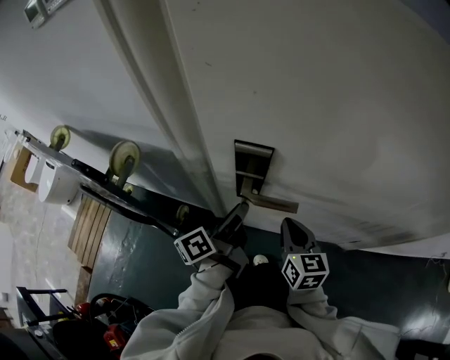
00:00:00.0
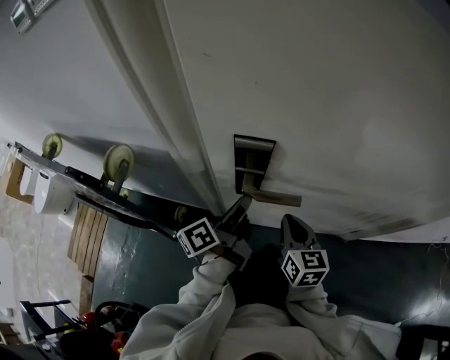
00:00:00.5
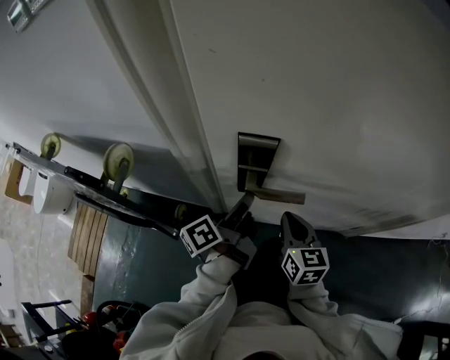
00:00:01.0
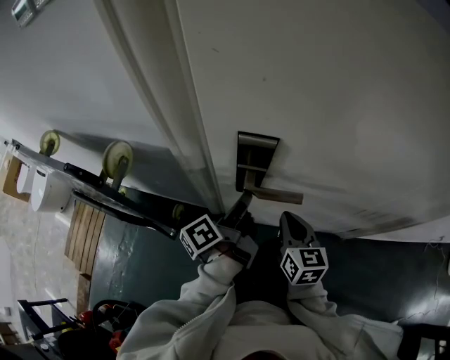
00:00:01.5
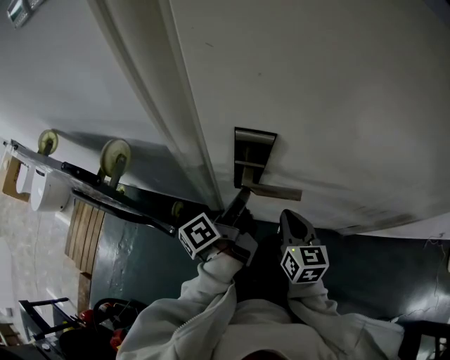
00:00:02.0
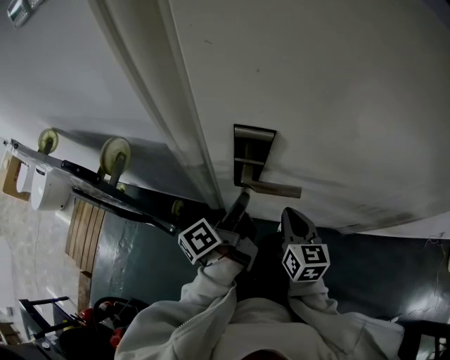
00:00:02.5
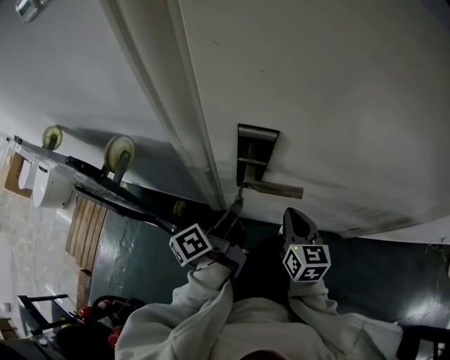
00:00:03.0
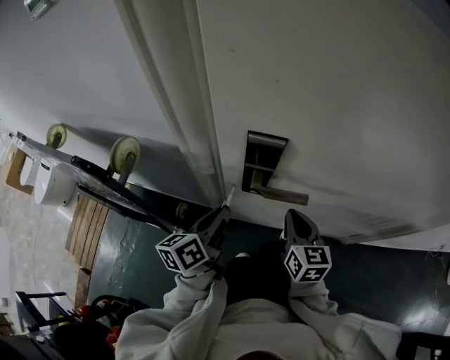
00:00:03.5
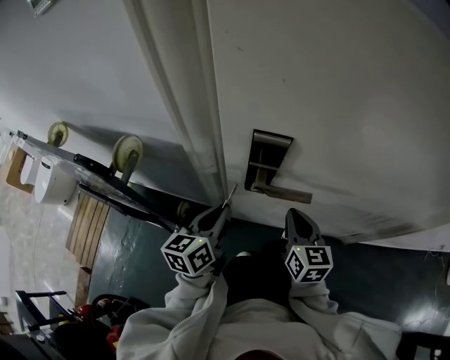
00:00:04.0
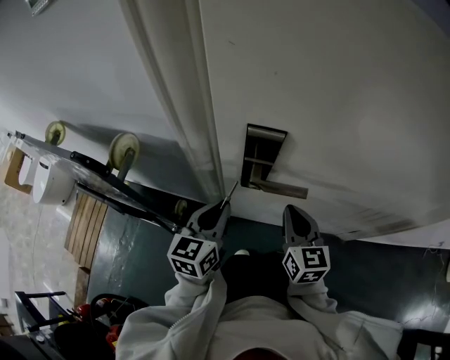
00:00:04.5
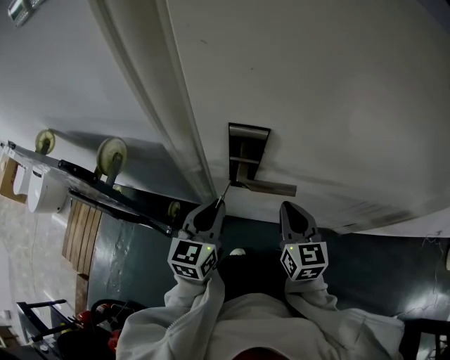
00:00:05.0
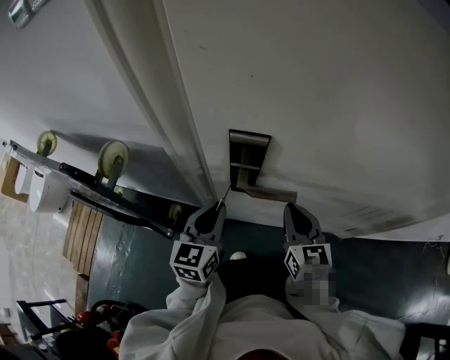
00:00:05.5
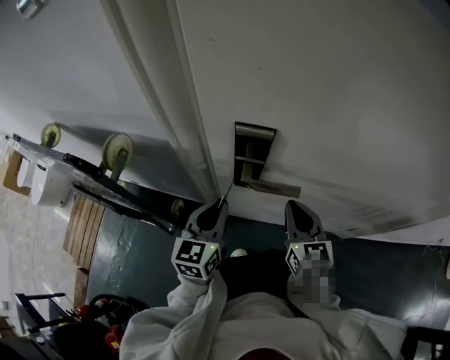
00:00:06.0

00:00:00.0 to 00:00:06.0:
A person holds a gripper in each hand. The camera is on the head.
00:00:00.0 to 00:00:02.0: The left gripper closes up.
00:00:02.0 to 00:00:04.0: The left gripper heads to the left, covering roughly 5 cm, and rolls clockwise, seen from behind, by roughly 50 degrees.
00:00:04.0 to 00:00:06.0: The left gripper swivels approximately 20 degrees.

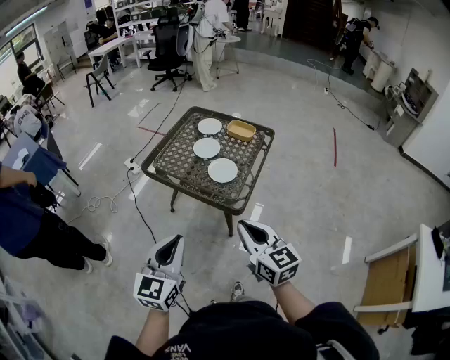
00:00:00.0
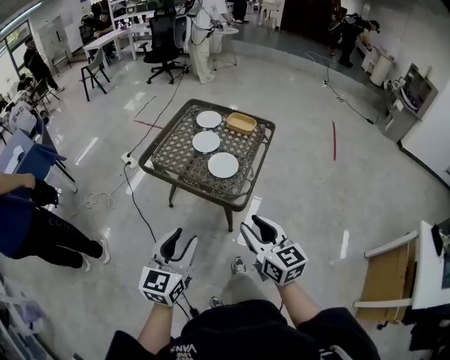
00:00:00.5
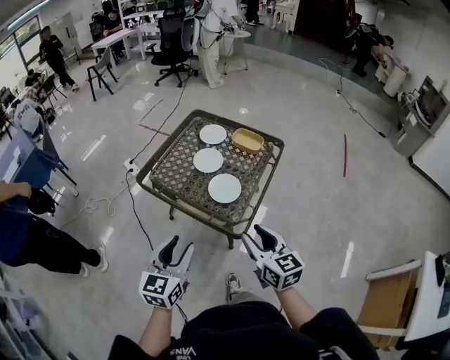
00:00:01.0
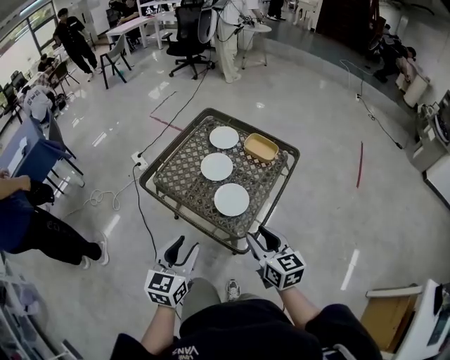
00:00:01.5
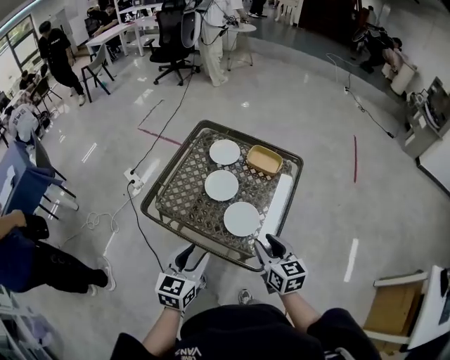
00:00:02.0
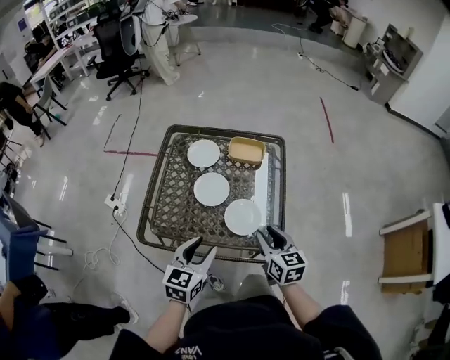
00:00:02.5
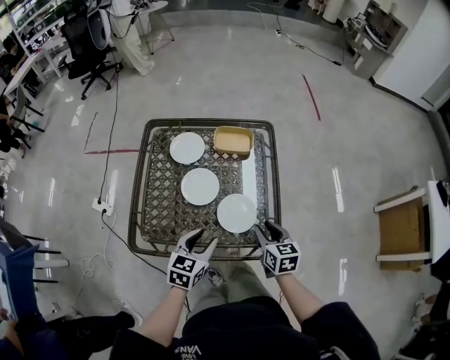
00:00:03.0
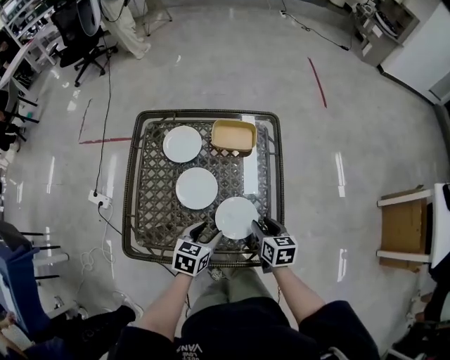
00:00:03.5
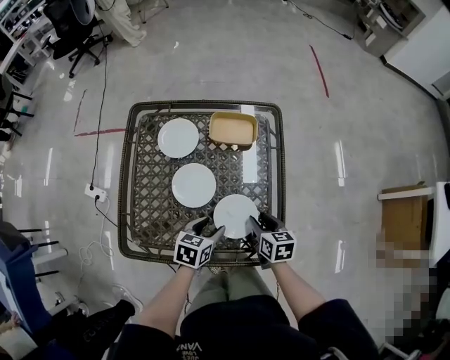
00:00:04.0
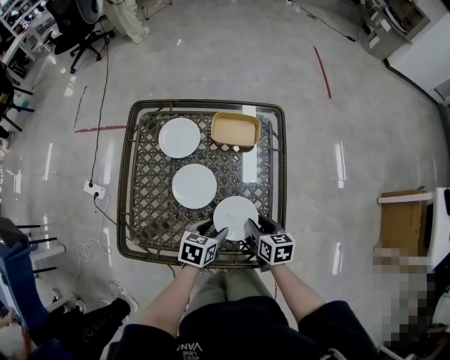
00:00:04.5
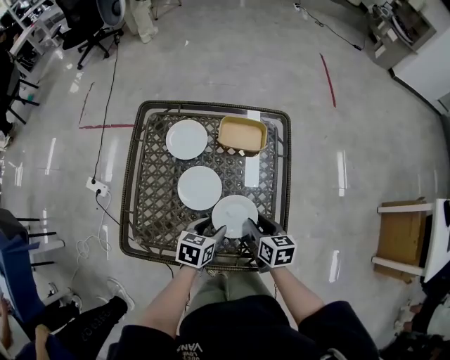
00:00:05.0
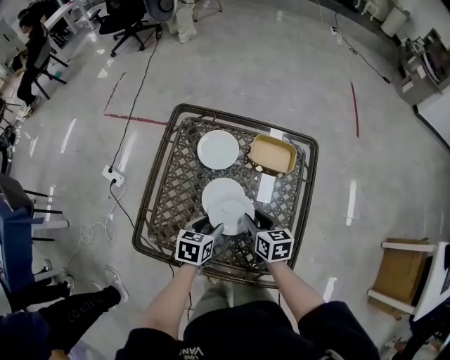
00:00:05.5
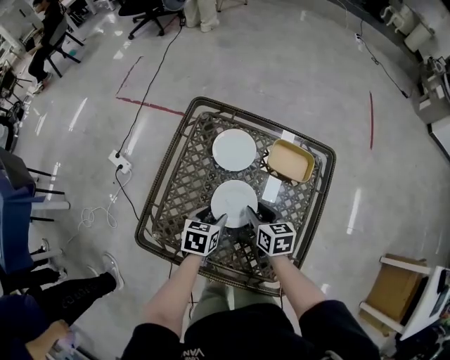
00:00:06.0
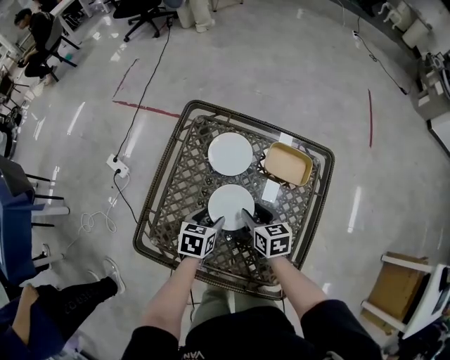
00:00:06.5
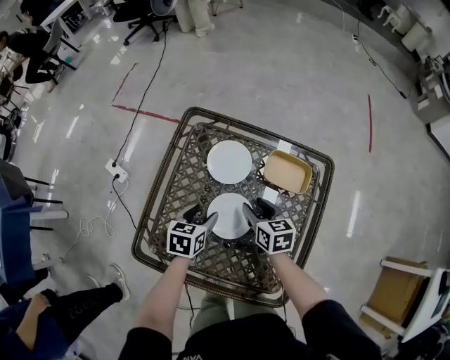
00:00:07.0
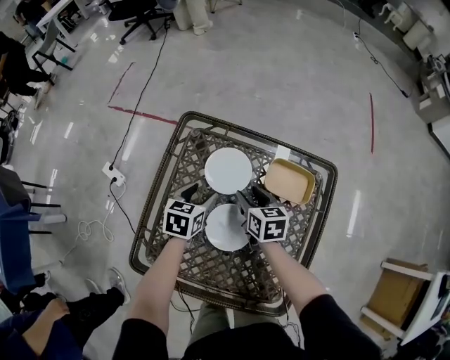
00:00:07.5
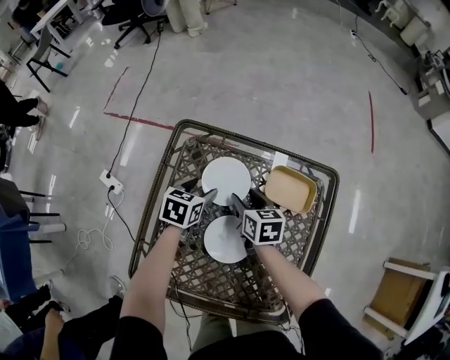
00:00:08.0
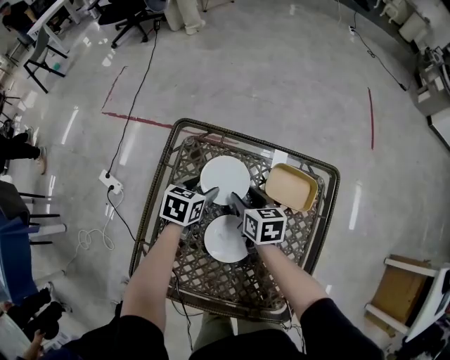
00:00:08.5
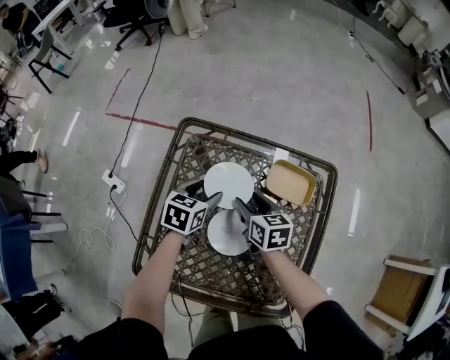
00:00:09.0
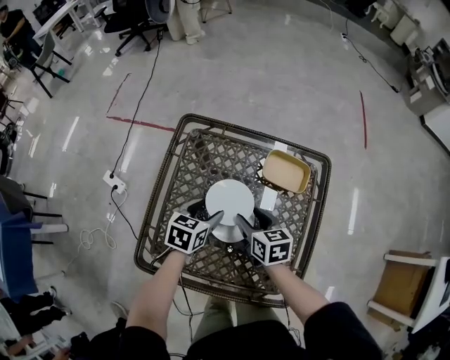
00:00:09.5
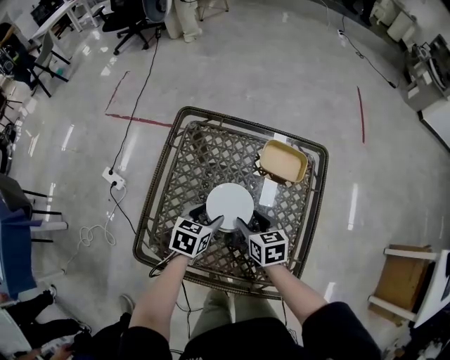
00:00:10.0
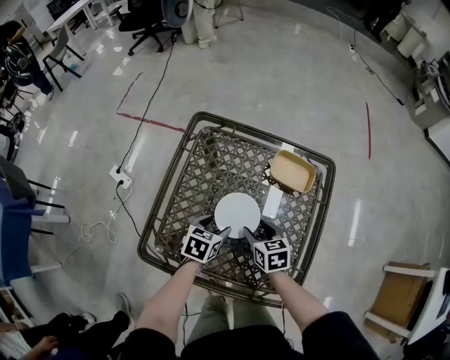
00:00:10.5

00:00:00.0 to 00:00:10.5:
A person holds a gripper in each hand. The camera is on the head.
00:00:00.0 to 00:00:02.0: The two grippers go about 30 cm forward and downward. The left gripper opens its fingers. Meanwhile the right gripper opens up.
00:00:02.0 to 00:00:04.0: The grippers both shift downward by approximately 20 cm. The right gripper rotates roughly 40 degrees. Meanwhile the left gripper turns by roughly 40 degrees.
00:00:04.0 to 00:00:06.5: Both grippers move to the left and forward, approximately 20 cm. The left gripper swivels approximately 20 degrees. The right gripper changes its angle by approximately 20 degrees.
00:00:06.5 to 00:00:08.5: The two grippers go some 15 cm forward.
00:00:08.5 to 00:00:10.5: The grippers both shift backward by roughly 20 cm.

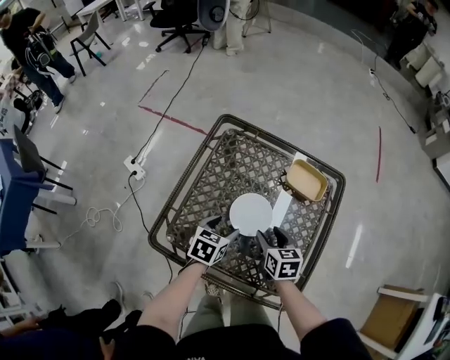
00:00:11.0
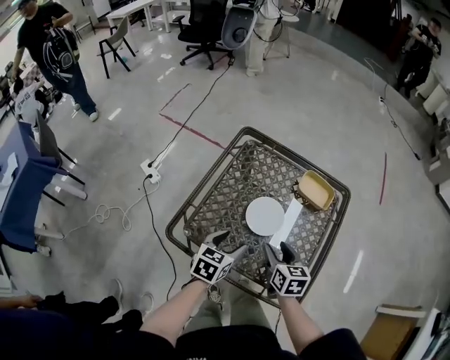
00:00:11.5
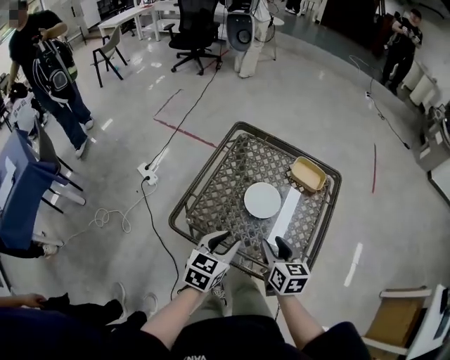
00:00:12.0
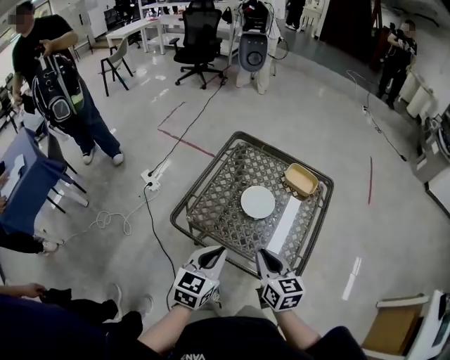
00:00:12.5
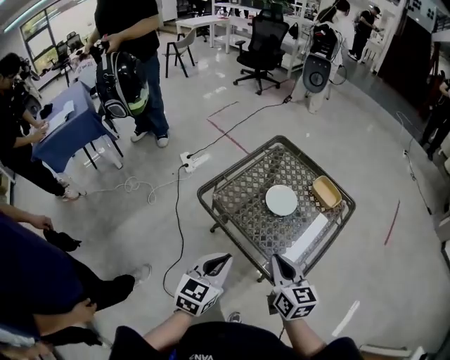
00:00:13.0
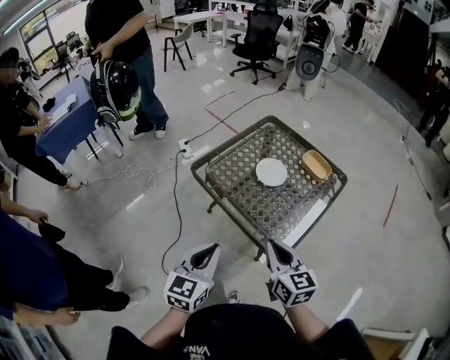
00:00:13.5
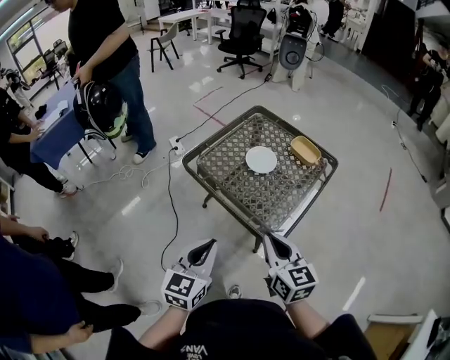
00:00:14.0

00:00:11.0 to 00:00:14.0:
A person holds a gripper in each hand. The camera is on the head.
00:00:11.0 to 00:00:12.5: The grippers both shift backward and upward by approximately 25 cm. The left gripper swivels about 30 degrees, and closes up, while the right gripper swivels roughly 20 degrees, and closes up.
00:00:12.5 to 00:00:14.0: Both grippers travel together backward, roughly 20 cm. The left gripper turns by roughly 20 degrees; the right gripper changes its angle by approximately 20 degrees.

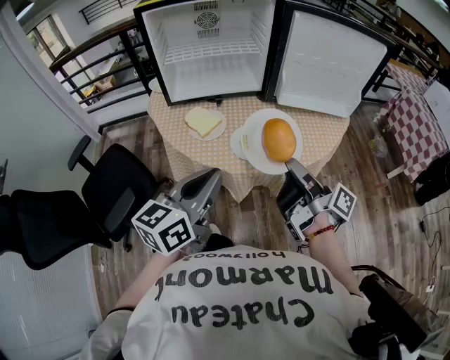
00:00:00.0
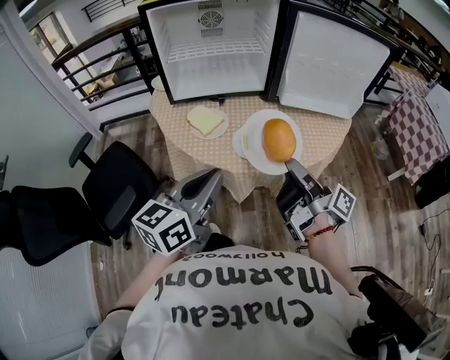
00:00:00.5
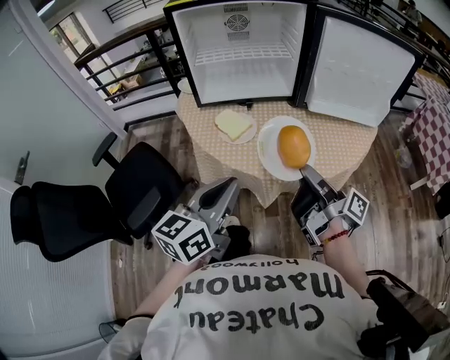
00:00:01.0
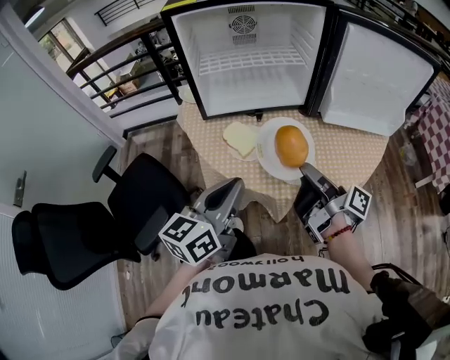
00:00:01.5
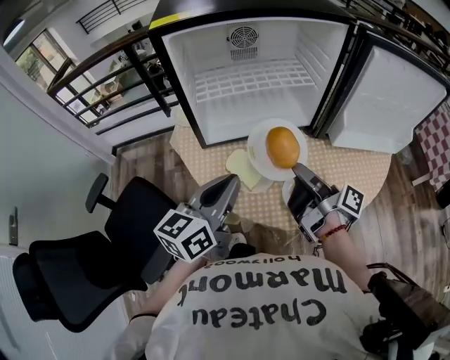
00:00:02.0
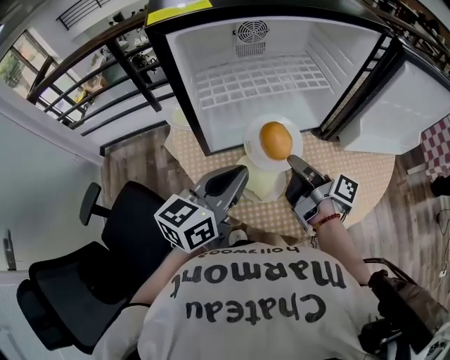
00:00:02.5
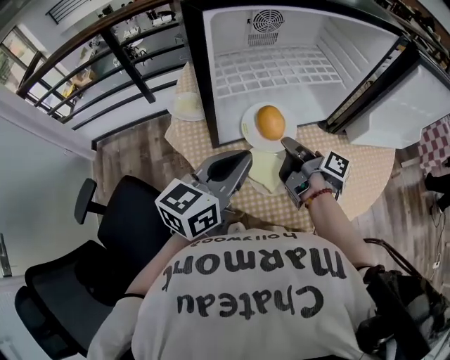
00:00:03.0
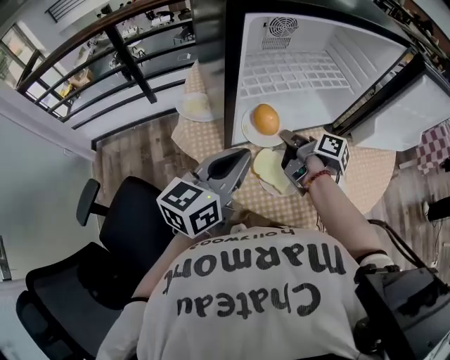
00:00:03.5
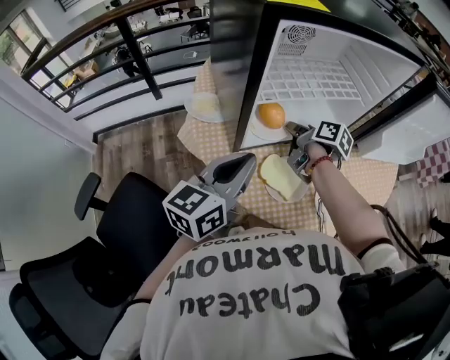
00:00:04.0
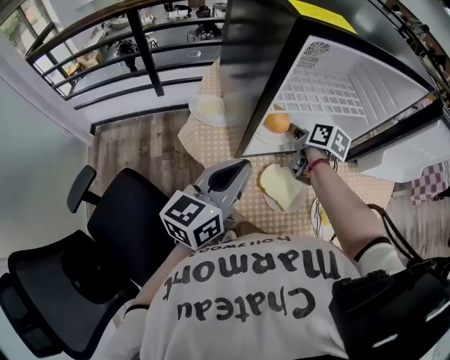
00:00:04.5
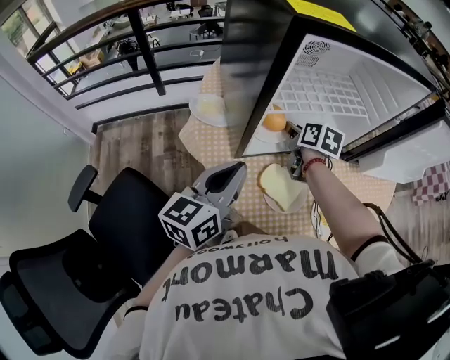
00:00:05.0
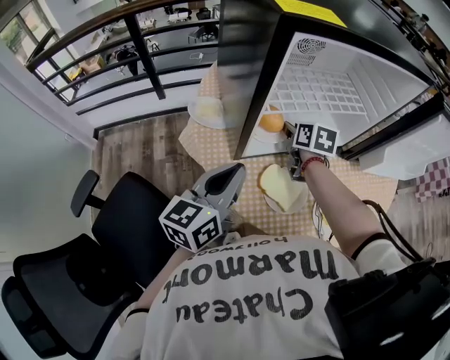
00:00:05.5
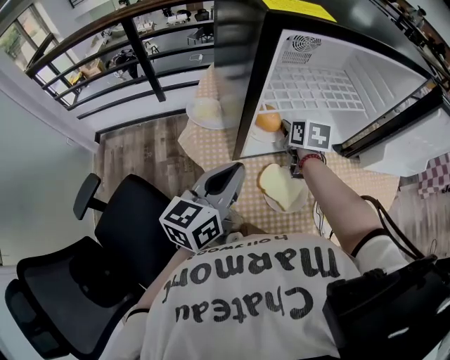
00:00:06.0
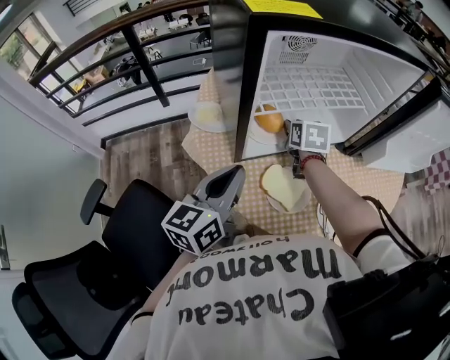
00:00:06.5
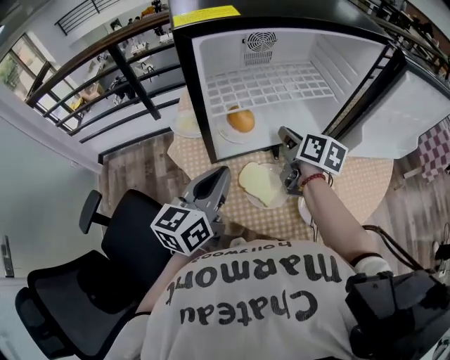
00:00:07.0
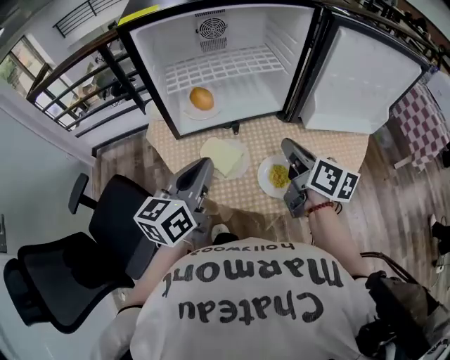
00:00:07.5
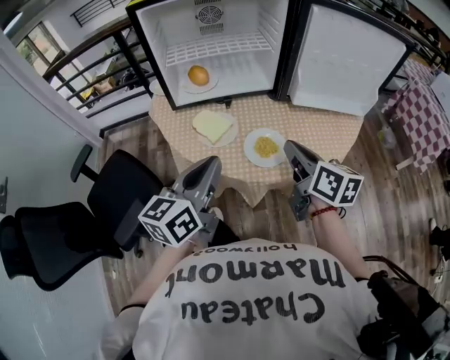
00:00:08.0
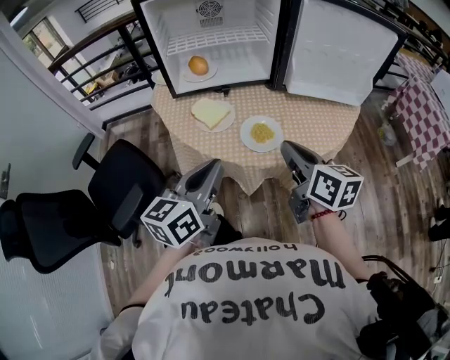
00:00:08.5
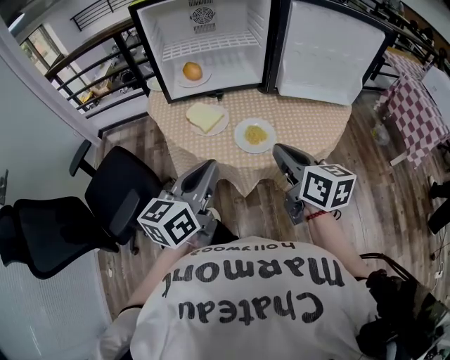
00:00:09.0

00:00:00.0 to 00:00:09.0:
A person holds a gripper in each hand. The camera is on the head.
00:00:00.0 to 00:00:02.0: Both grippers travel together forward and to the left, some 25 cm.
00:00:02.0 to 00:00:04.5: The right gripper is displaced forward, to the left and downward by approximately 25 cm, and tips its fingers downward by some 40 degrees. The left gripper heads to the left and forward, covering some 15 cm.
00:00:04.5 to 00:00:07.0: The right gripper shifts roughly 10 cm upward, to the right and backward.
00:00:07.0 to 00:00:09.0: The two grippers go roughly 35 cm backward and to the right. The right gripper turns by approximately 30 degrees.
